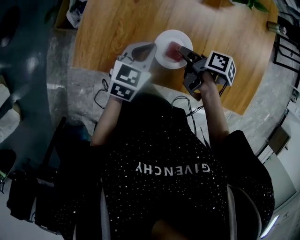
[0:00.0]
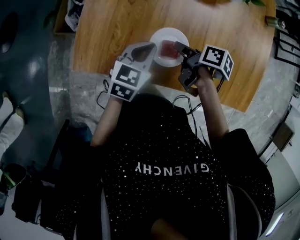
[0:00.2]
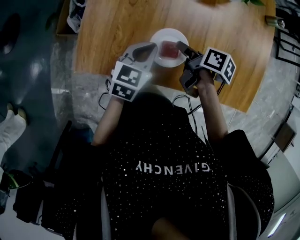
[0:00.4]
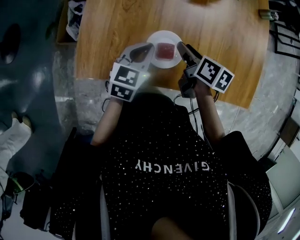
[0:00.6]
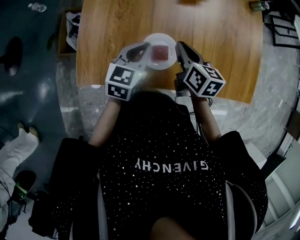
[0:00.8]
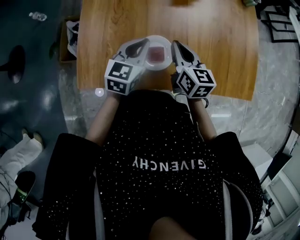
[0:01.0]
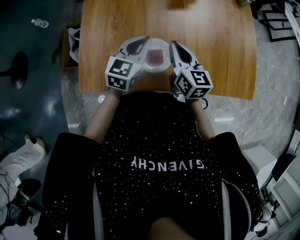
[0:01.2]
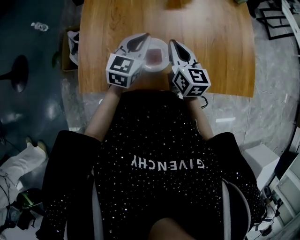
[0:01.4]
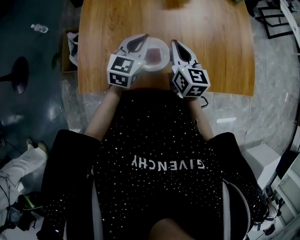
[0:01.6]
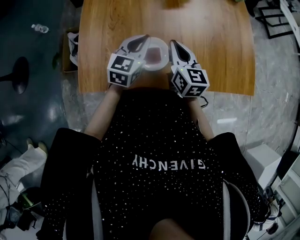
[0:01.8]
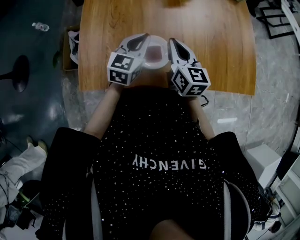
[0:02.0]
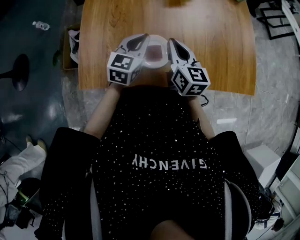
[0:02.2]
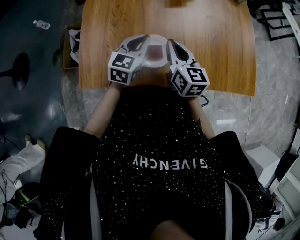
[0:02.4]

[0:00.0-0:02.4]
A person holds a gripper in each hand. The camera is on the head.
0:00.0 to 0:01.2: The right gripper shifts about 10 cm upward, tilts its fingers about 30 degrees upward, and closes its fingers. Meanwhile the left gripper moves upward and to the right, roughly 10 cm.
0:01.2 to 0:02.4: The grippers make only small movements.

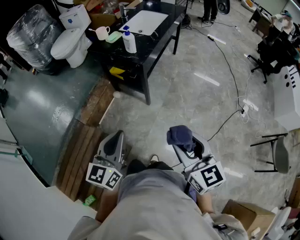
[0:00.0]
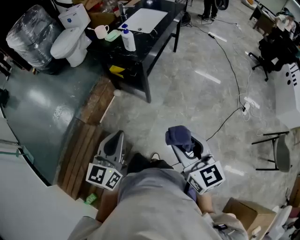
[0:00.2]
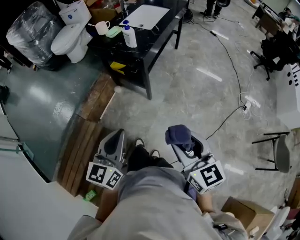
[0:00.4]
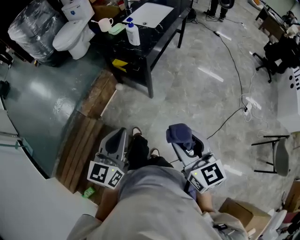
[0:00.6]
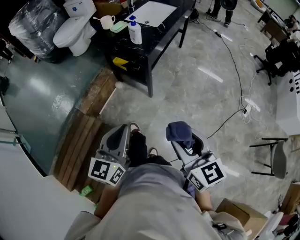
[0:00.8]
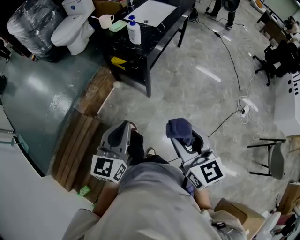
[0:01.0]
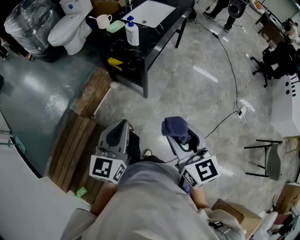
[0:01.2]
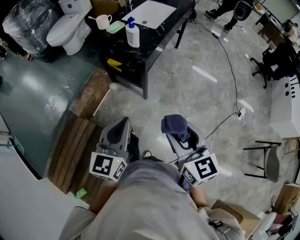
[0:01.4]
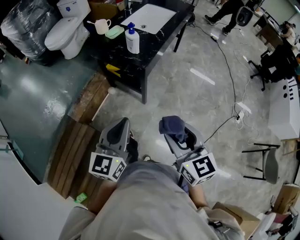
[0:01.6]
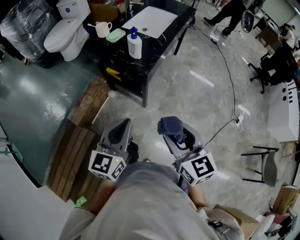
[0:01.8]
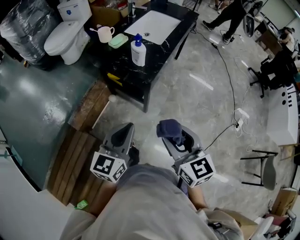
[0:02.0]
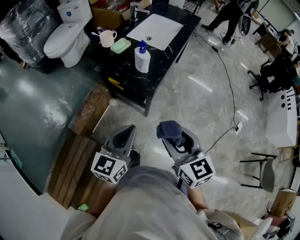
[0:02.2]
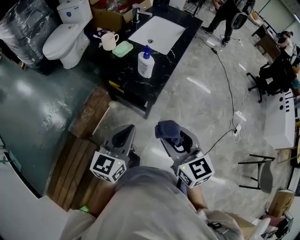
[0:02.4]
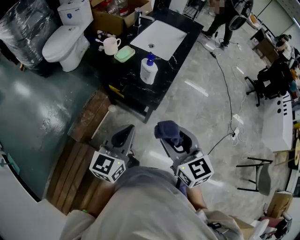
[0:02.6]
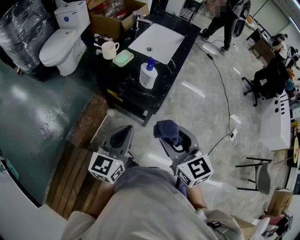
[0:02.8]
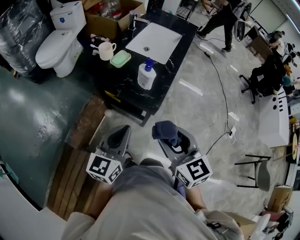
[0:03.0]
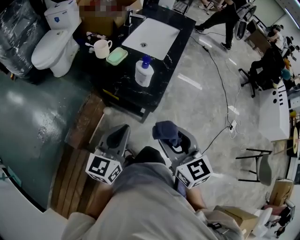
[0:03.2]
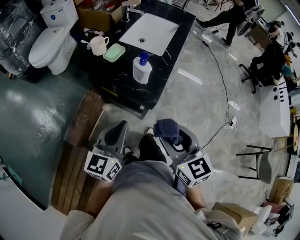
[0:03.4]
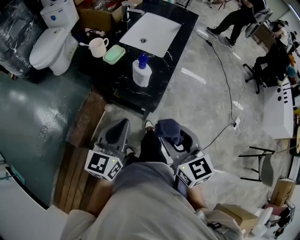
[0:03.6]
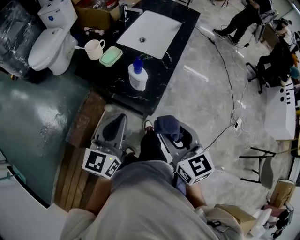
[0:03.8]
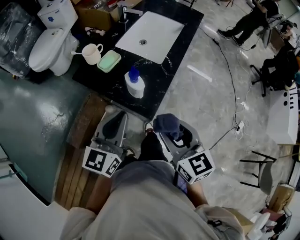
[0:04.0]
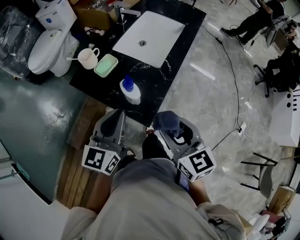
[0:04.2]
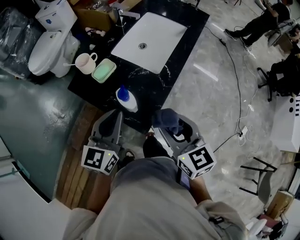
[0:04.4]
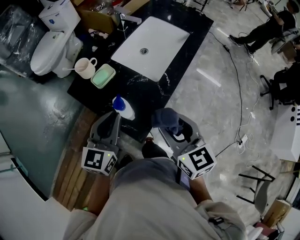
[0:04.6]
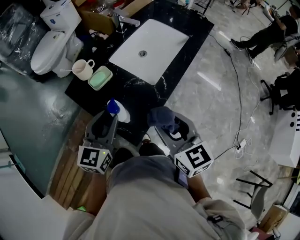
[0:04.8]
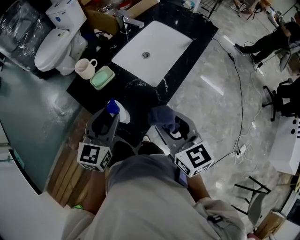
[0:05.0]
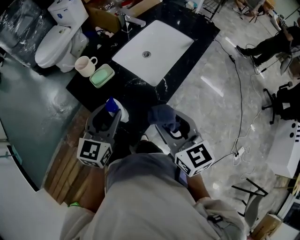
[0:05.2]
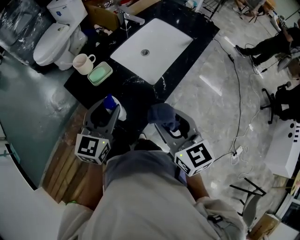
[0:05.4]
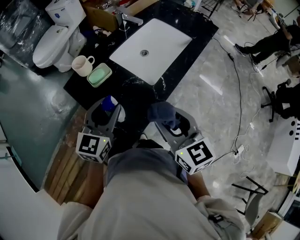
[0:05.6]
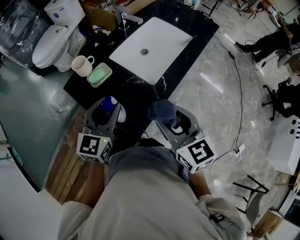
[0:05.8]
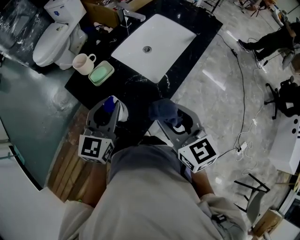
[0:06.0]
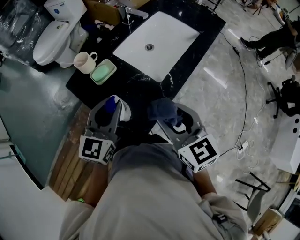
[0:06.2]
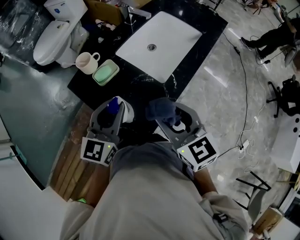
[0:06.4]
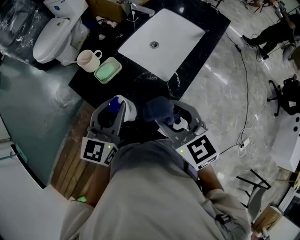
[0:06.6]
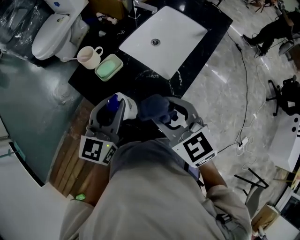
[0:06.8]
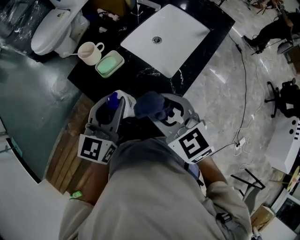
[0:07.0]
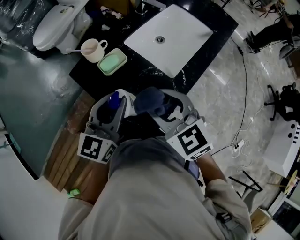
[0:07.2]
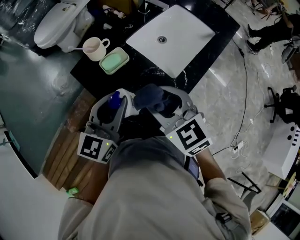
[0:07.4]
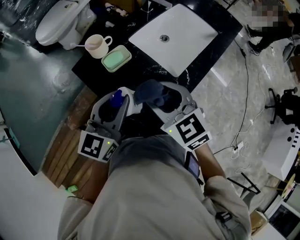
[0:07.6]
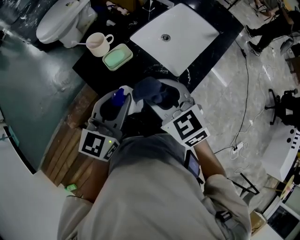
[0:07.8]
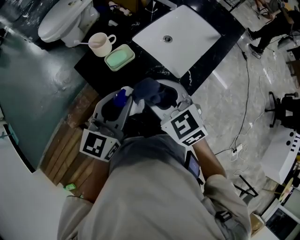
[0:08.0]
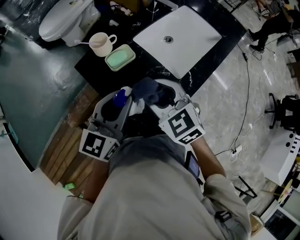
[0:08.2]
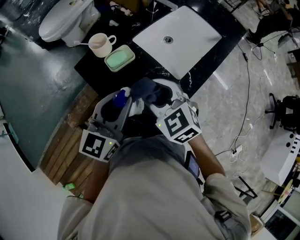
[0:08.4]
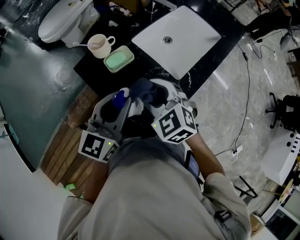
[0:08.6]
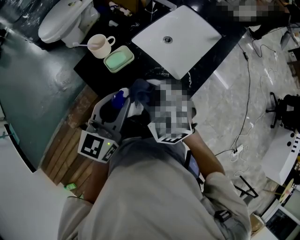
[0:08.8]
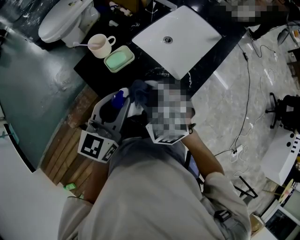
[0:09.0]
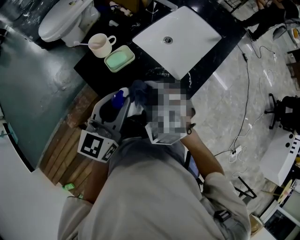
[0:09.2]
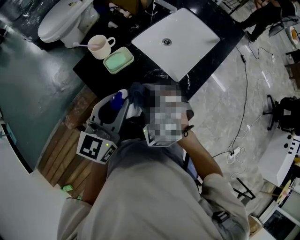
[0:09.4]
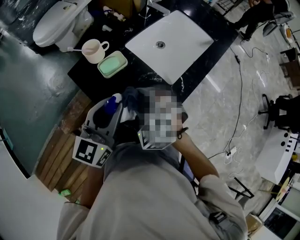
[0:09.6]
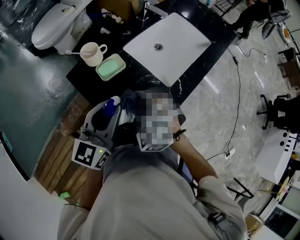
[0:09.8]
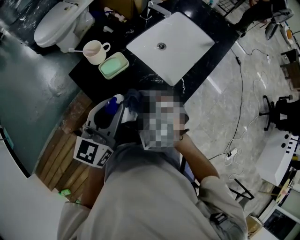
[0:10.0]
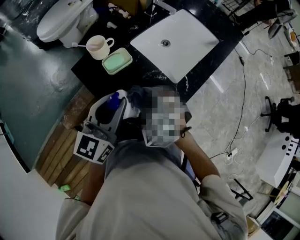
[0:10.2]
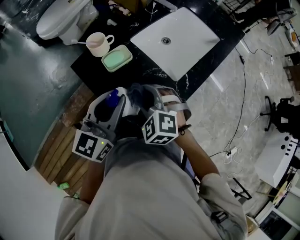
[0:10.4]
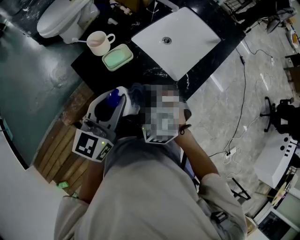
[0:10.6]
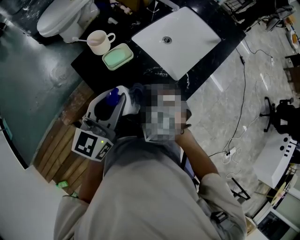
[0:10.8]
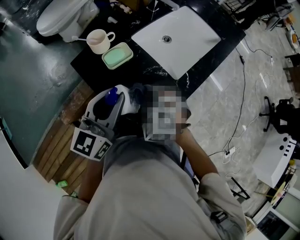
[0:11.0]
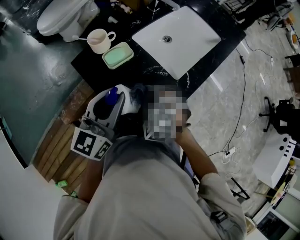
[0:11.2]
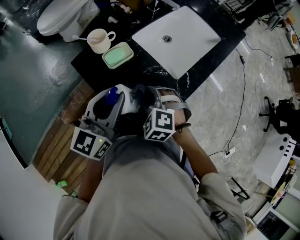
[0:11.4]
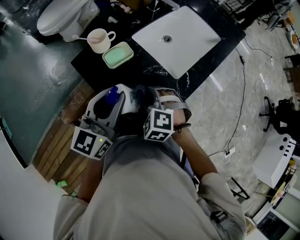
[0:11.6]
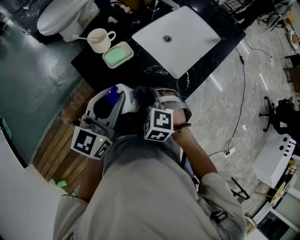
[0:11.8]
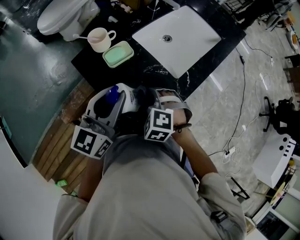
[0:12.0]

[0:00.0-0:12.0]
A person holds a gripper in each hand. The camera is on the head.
0:00.0 to 0:01.6: The two grippers go about 15 cm forward.
0:01.6 to 0:03.0: The grippers both shift forward and to the left by roughly 20 cm.
0:03.0 to 0:04.4: The right gripper moves forward and to the right, roughly 25 cm; the left gripper heads forward, covering about 20 cm.
0:04.4 to 0:06.0: The grippers both shift forward by some 5 cm.
0:06.0 to 0:07.6: The right gripper moves to the left and forward, roughly 15 cm, and rotates about 20 degrees.
0:07.6 to 0:09.0: The right gripper goes some 5 cm downward, and changes its angle by approximately 30 degrees.
0:09.0 to 0:10.4: The grippers move only a little.
0:10.4 to 0:12.0: The right gripper is displaced downward by roughly 5 cm.

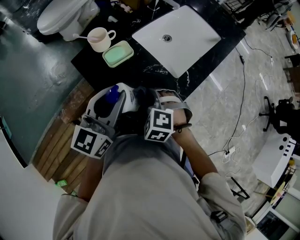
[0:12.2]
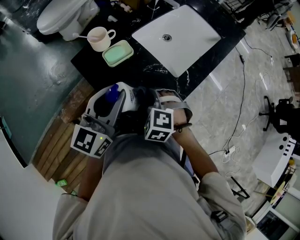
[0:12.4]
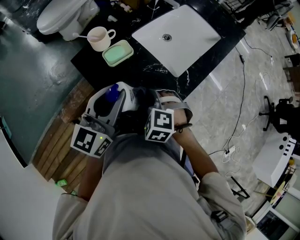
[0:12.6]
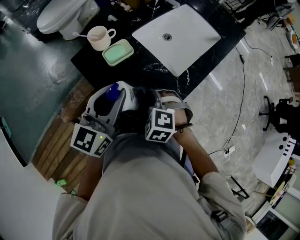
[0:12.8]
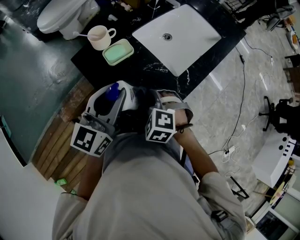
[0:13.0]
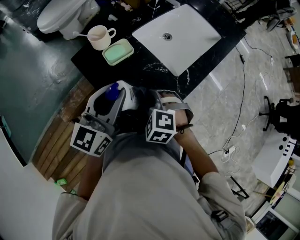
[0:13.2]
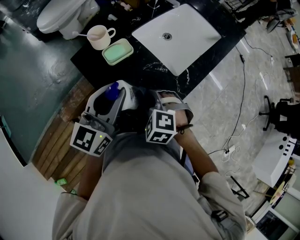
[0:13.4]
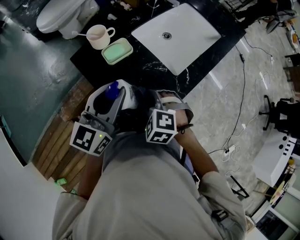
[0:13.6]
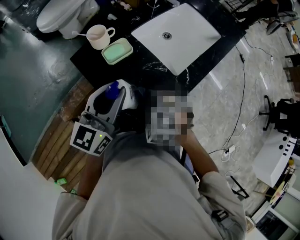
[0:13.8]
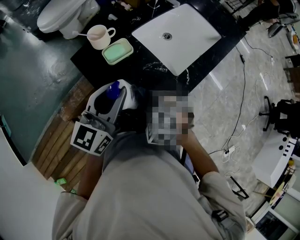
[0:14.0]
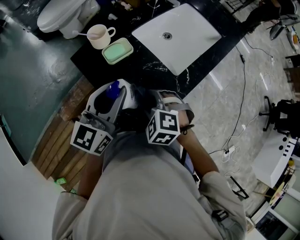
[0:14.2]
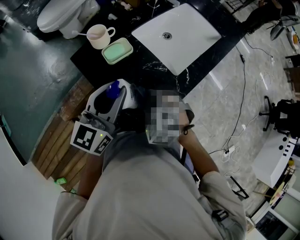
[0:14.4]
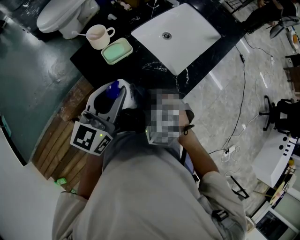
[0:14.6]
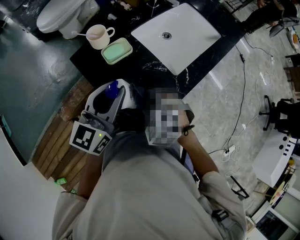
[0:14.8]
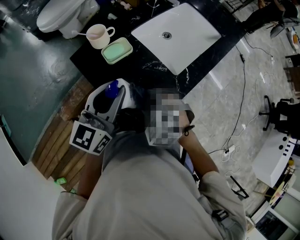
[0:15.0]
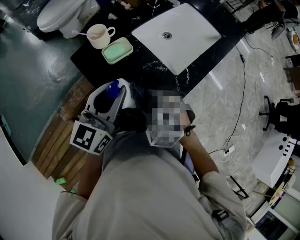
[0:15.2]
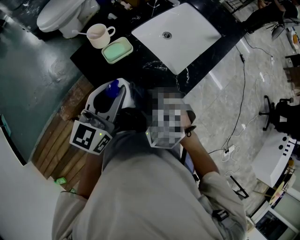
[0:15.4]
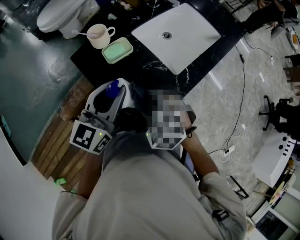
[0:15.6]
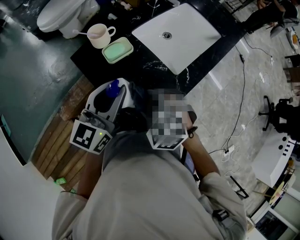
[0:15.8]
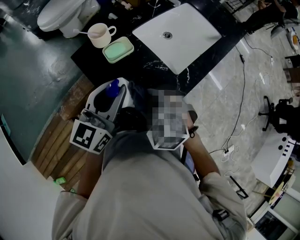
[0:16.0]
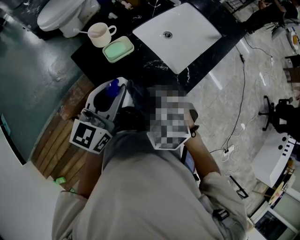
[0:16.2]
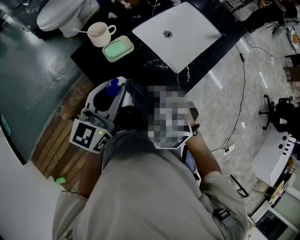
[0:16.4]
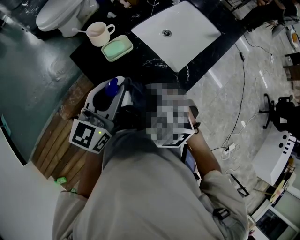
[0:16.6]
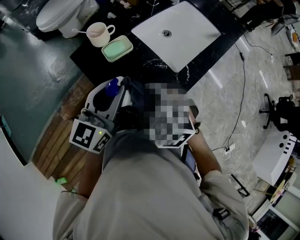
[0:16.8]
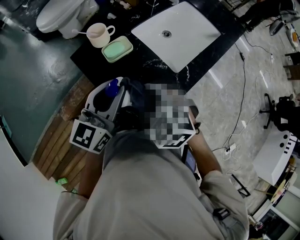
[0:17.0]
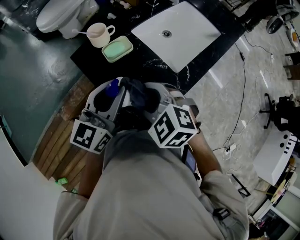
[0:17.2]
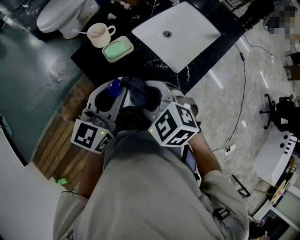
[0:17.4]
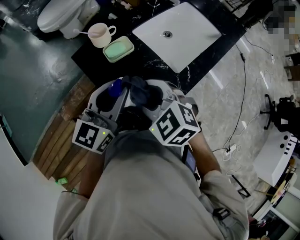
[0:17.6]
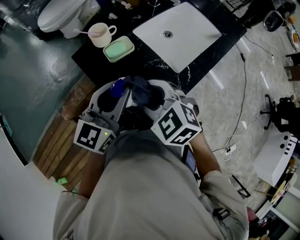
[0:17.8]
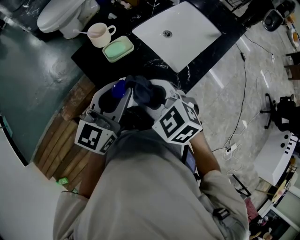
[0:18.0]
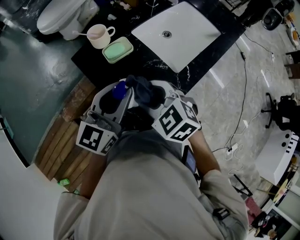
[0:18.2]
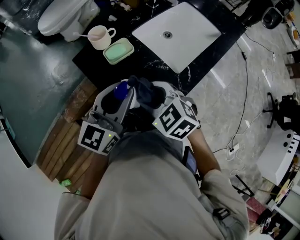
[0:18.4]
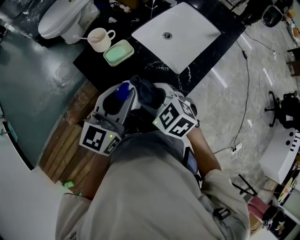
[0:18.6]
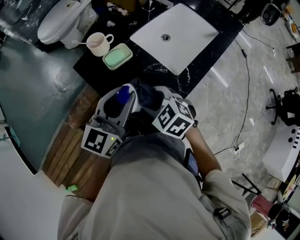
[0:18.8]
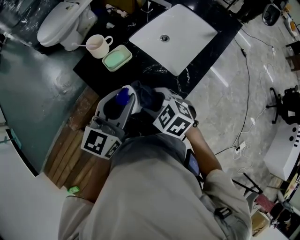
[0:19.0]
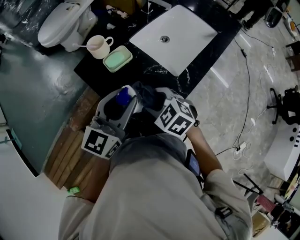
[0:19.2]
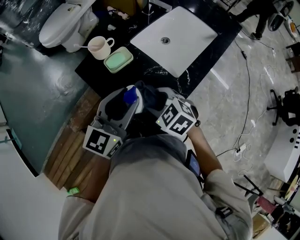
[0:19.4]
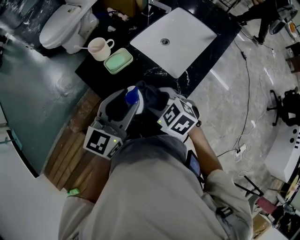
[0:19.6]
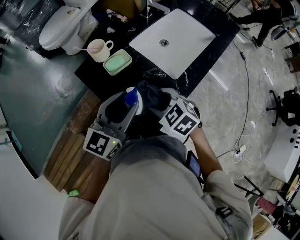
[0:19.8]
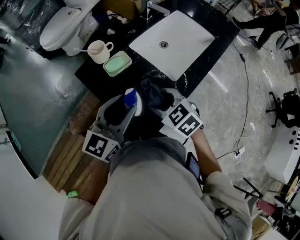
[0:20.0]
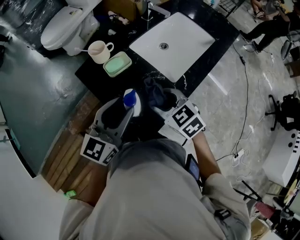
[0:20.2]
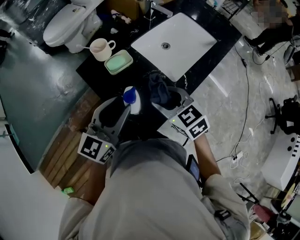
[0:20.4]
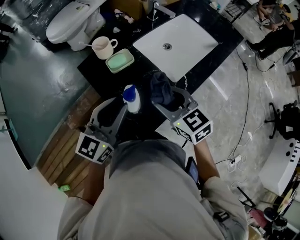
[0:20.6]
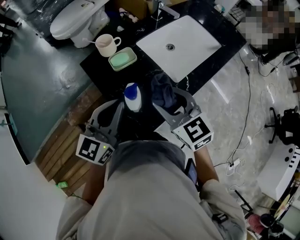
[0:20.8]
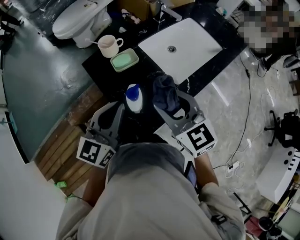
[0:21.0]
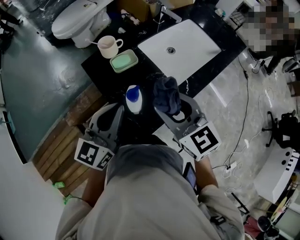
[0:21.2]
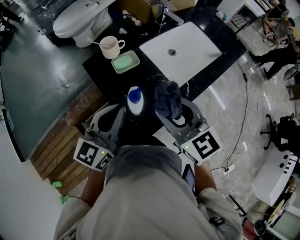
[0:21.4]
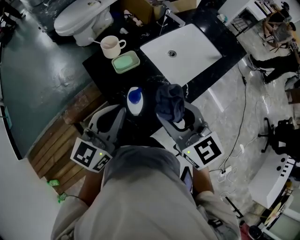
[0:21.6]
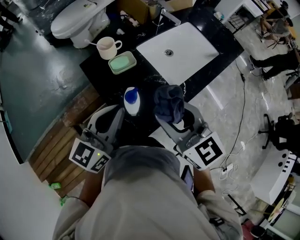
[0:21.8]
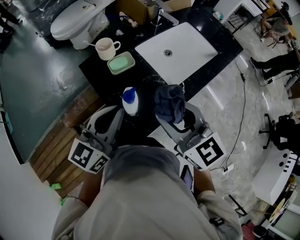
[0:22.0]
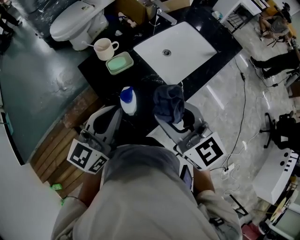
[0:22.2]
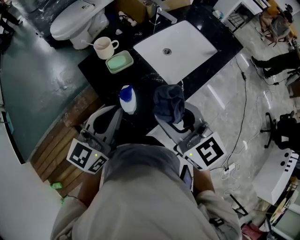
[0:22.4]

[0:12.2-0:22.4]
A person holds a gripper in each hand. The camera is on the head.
0:12.2 to 0:15.2: The grippers make only small movements.
0:15.2 to 0:16.6: The grippers stay close to where they were, moving slightly.
0:16.6 to 0:18.0: The grippers make only small movements.
0:18.0 to 0:19.4: The right gripper travels downward by some 5 cm.
0:19.4 to 0:21.0: The left gripper moves some 5 cm, and closes up, while the right gripper shifts approximately 15 cm upward, and tips its fingers upward by about 30 degrees.
0:21.0 to 0:22.4: The right gripper moves approximately 5 cm.
